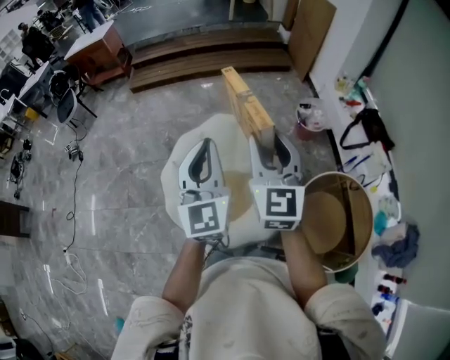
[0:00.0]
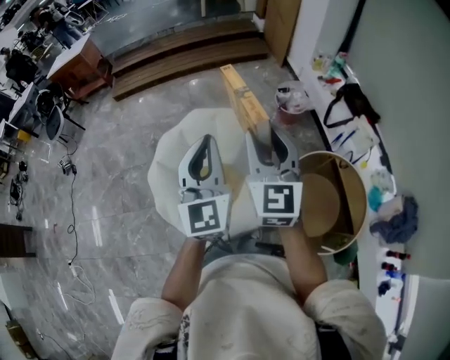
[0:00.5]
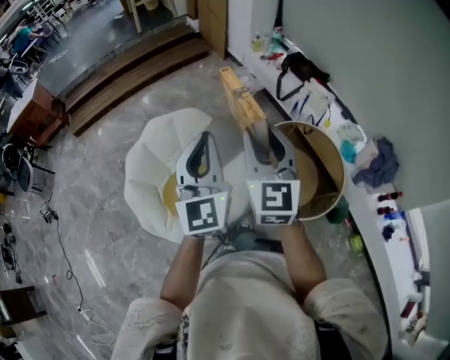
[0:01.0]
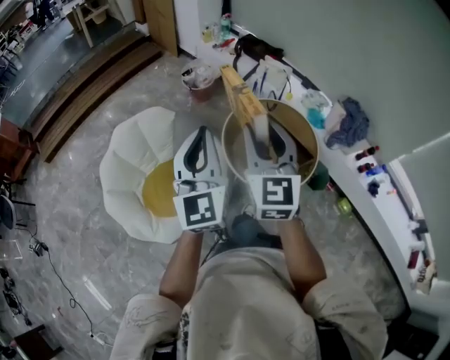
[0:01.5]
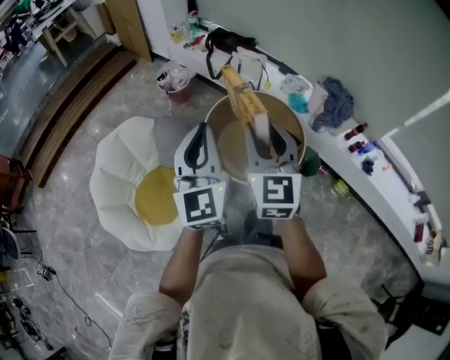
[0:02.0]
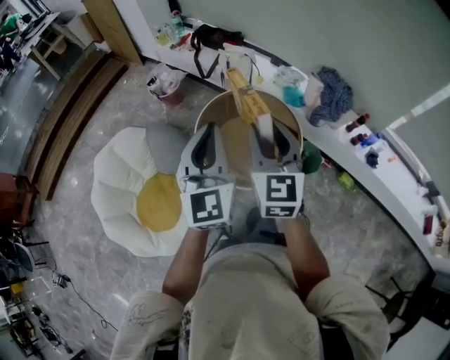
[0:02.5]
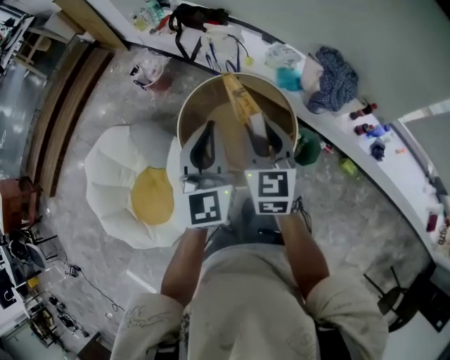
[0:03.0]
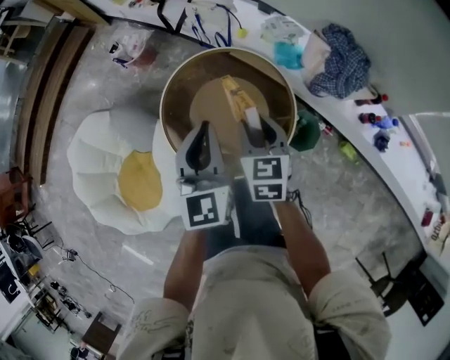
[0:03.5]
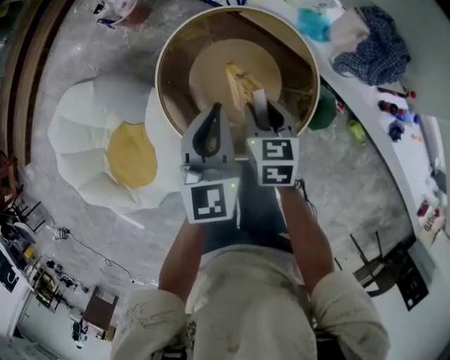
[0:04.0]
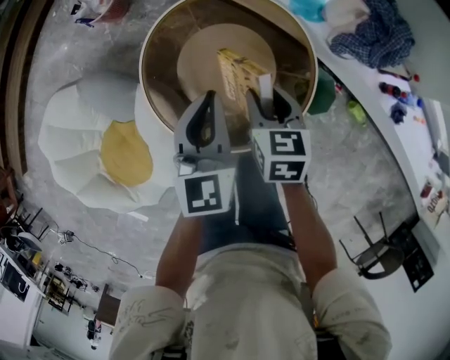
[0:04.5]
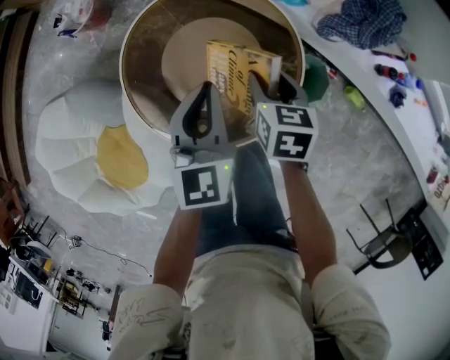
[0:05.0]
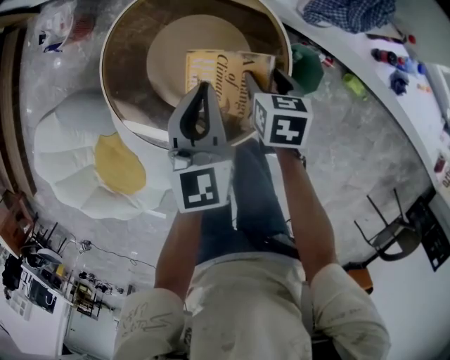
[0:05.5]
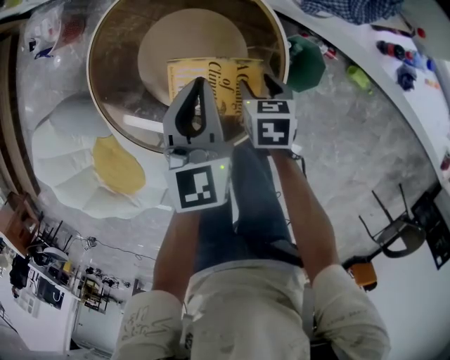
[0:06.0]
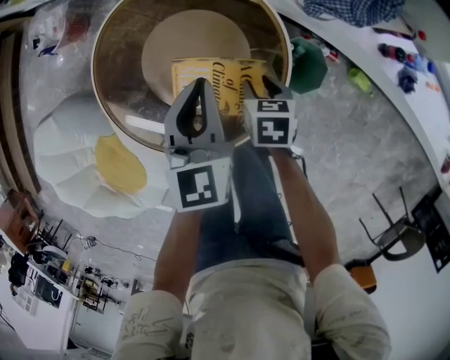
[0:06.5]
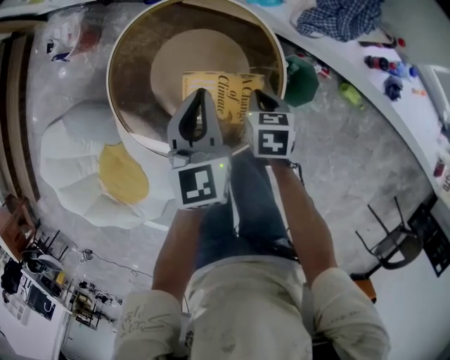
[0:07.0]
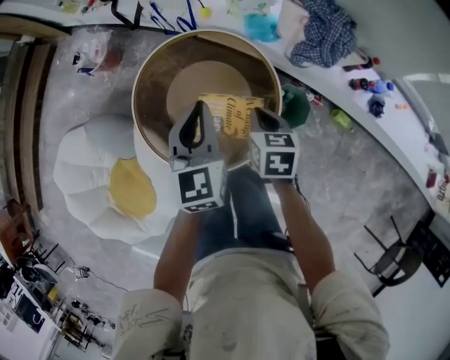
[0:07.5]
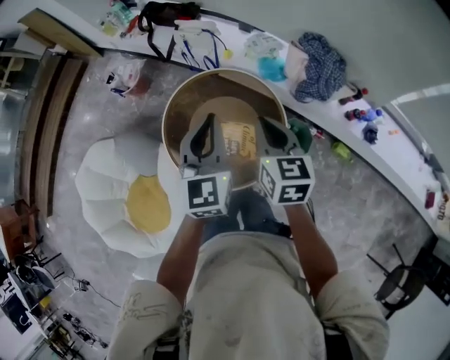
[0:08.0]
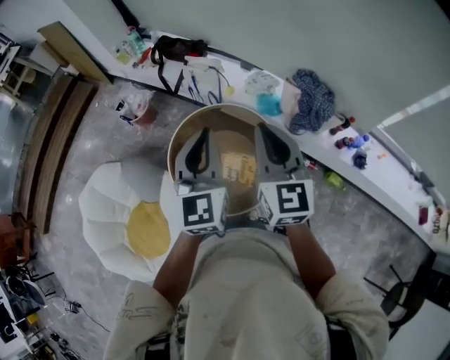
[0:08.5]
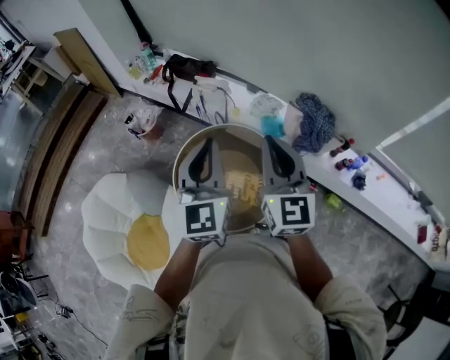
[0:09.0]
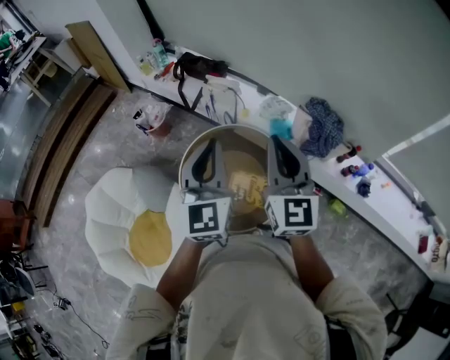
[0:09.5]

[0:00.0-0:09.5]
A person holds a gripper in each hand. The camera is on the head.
0:00.0 to 0:02.0: The right gripper moves approximately 40 cm, and rotates about 50 degrees. The left gripper moves about 35 cm, and rotates some 50 degrees.
0:02.0 to 0:04.0: The two grippers go roughly 40 cm downward, forward and to the right. The right gripper tilts its fingers some 40 degrees downward, while the left gripper turns by approximately 30 degrees.
0:04.0 to 0:05.5: Both grippers travel together to the right and downward, approximately 20 cm. The right gripper changes its angle by approximately 20 degrees.
0:05.5 to 0:07.5: The two grippers go approximately 10 cm upward. The right gripper closes.
0:07.5 to 0:09.5: Both grippers travel together upward, roughly 35 cm. The left gripper turns by about 20 degrees. The right gripper angles its fingers upward, by some 50 degrees.

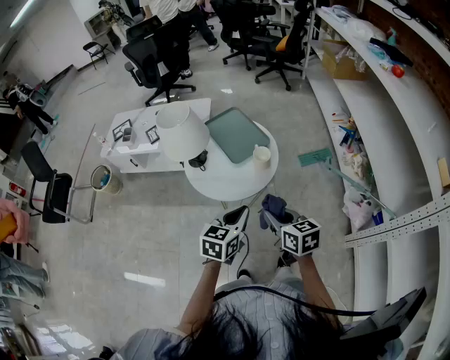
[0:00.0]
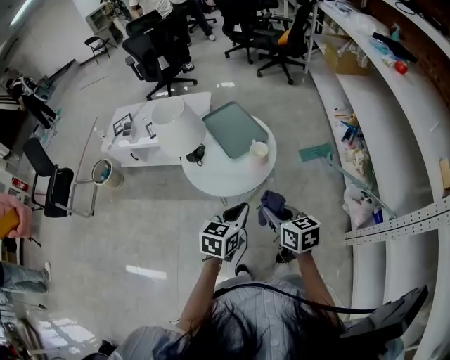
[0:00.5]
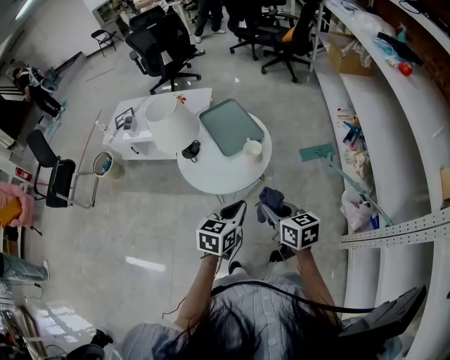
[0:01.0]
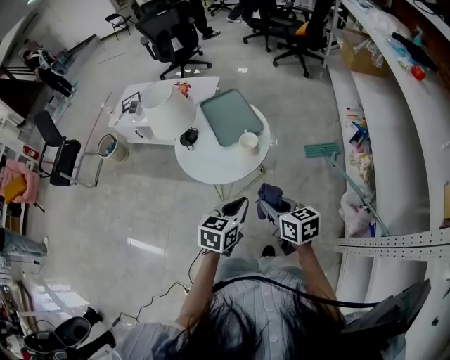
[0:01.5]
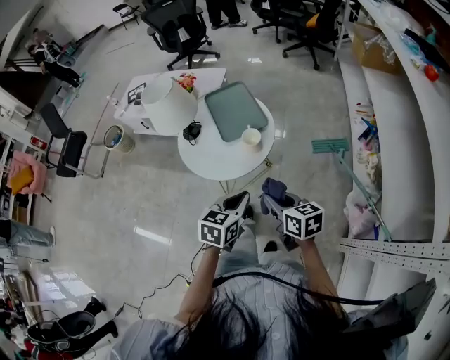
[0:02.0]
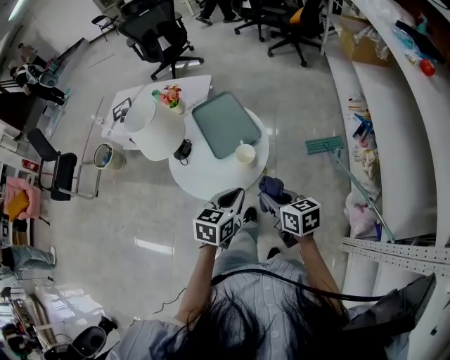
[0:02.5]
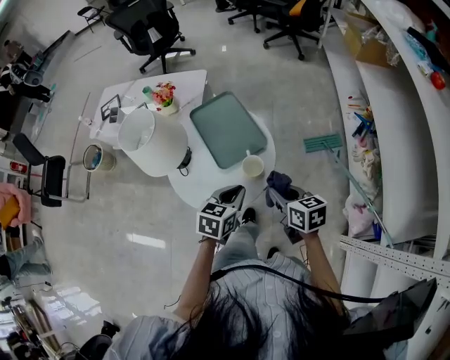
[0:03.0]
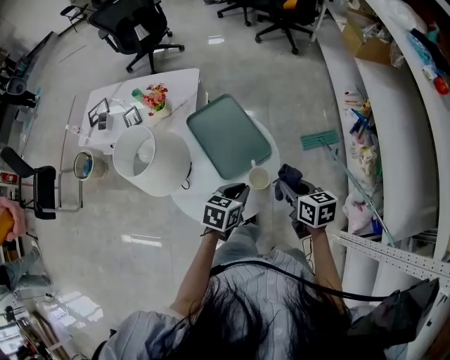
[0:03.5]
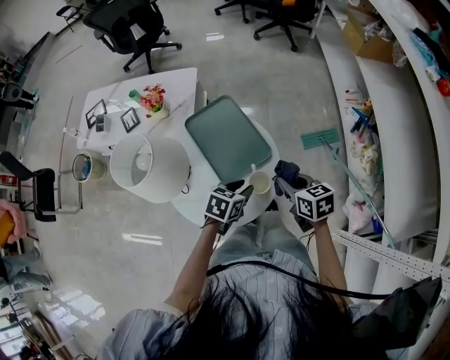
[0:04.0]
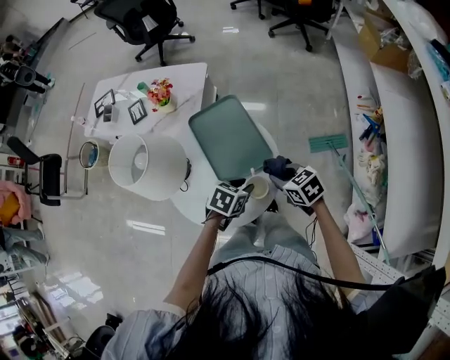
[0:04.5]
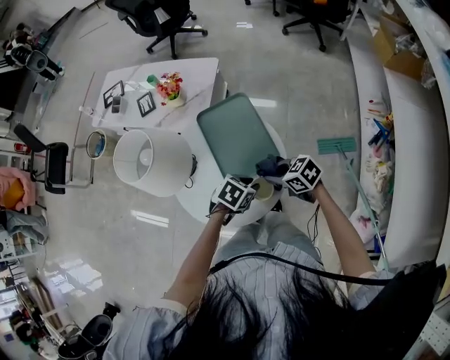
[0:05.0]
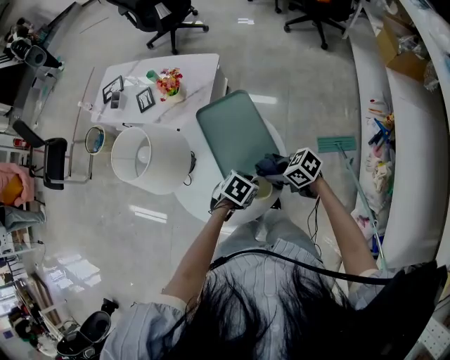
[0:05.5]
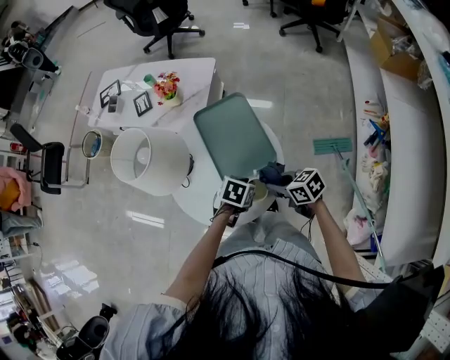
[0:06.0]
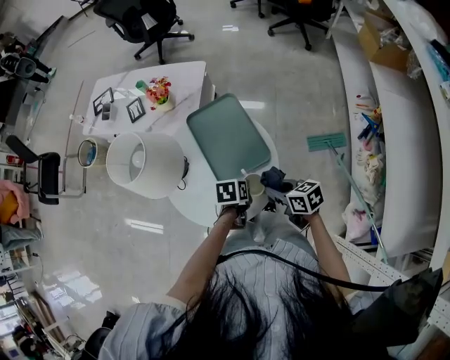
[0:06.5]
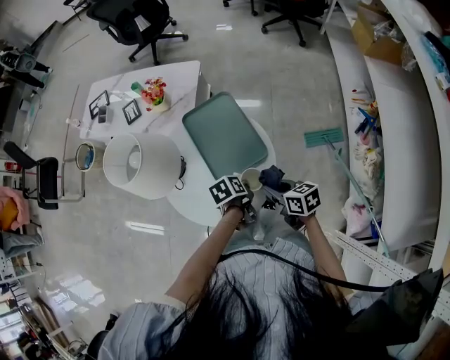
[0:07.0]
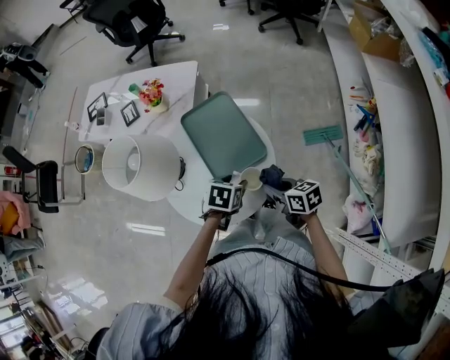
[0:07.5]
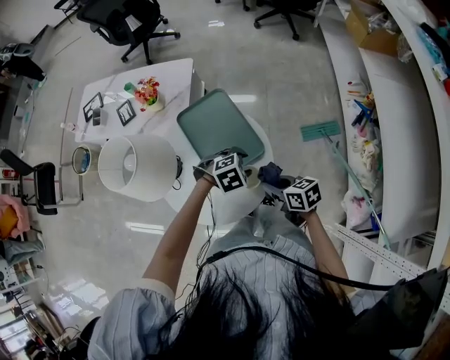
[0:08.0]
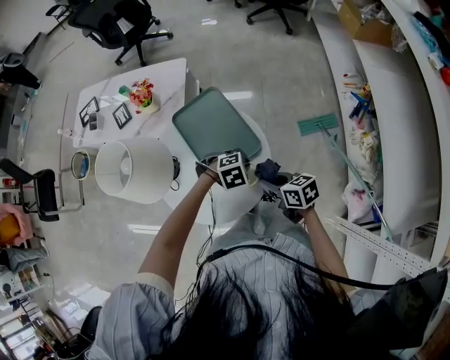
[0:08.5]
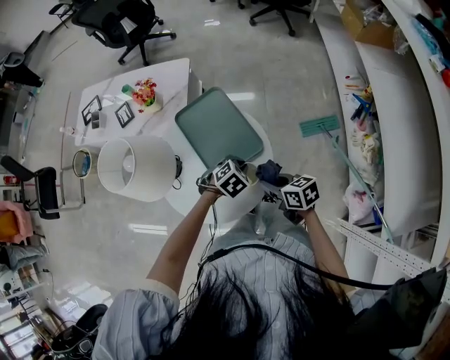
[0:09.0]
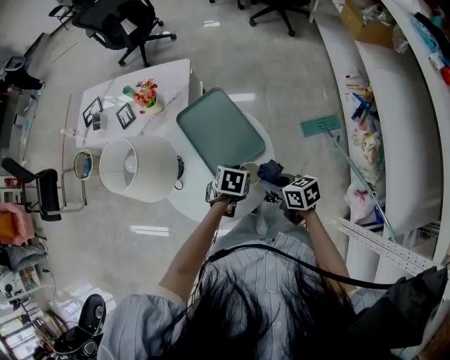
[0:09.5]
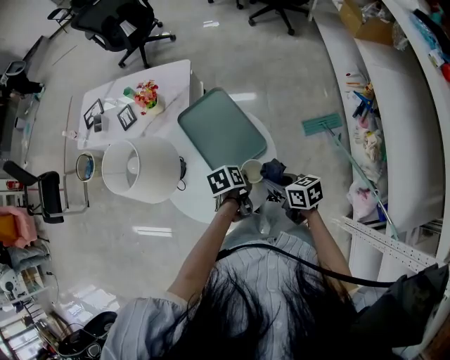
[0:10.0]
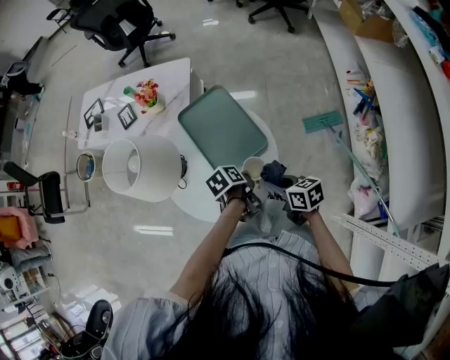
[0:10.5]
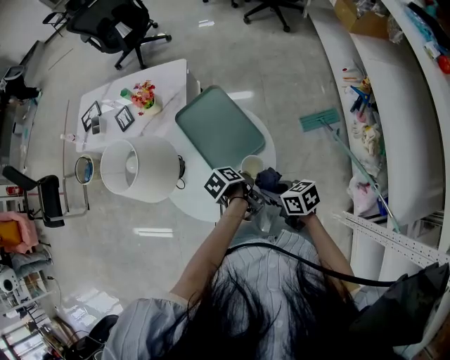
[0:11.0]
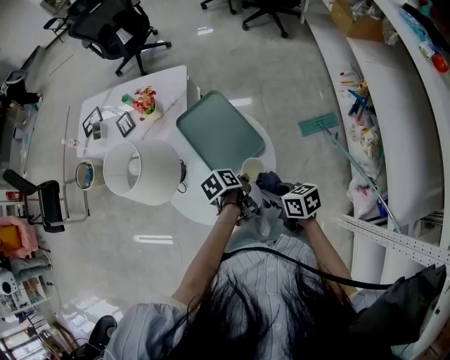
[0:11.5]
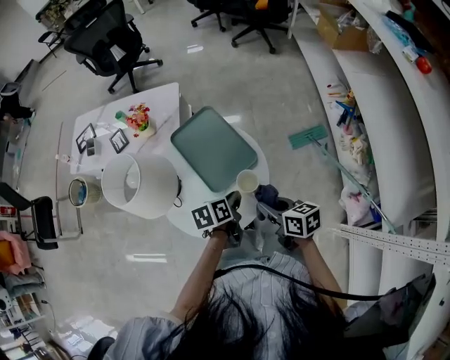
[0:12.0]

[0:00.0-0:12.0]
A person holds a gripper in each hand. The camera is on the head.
0:00.0 to 0:02.0: Both grippers move to the right, roughly 10 cm.
0:02.0 to 0:04.0: The right gripper travels forward by about 25 cm, while the left gripper moves forward and downward, roughly 25 cm, turns by about 30 degrees, and opens up.
0:04.0 to 0:06.0: The two grippers go some 5 cm downward. The right gripper turns by roughly 40 degrees.
0:06.0 to 0:08.0: The left gripper changes place by roughly 5 cm, rolls clockwise, seen from behind, by about 60 degrees, and opens. Meanwhile the right gripper swivels approximately 20 degrees.
0:08.0 to 0:10.0: The left gripper shifts by some 5 cm, rotates around the line of its fingers by roughly 90 degrees, counterclockwise from behind, and closes its fingers.
0:10.0 to 0:12.0: Both grippers move upward, approximately 5 cm.

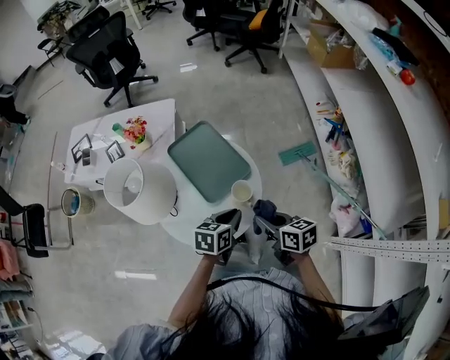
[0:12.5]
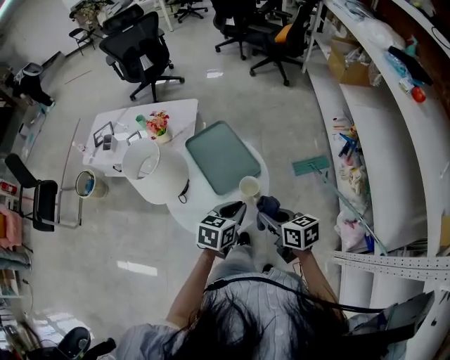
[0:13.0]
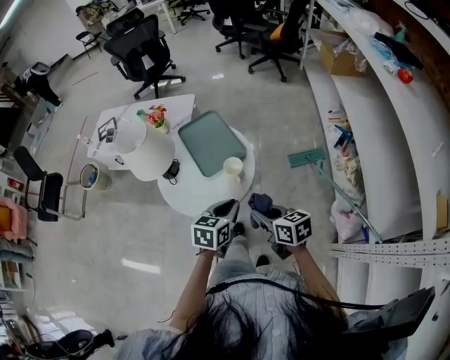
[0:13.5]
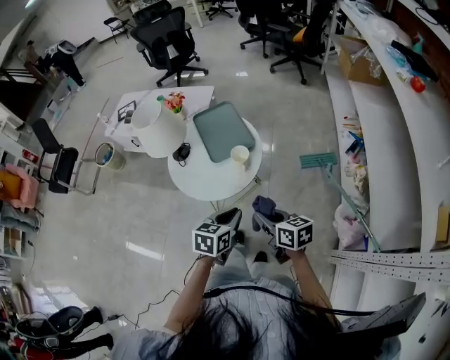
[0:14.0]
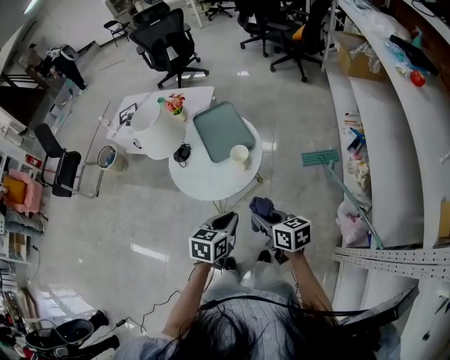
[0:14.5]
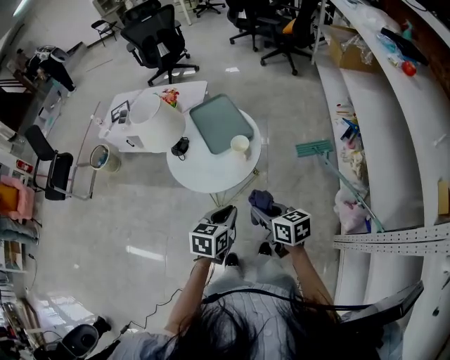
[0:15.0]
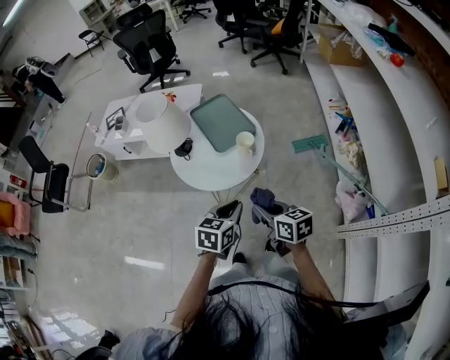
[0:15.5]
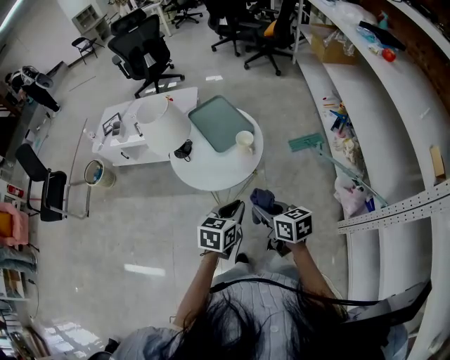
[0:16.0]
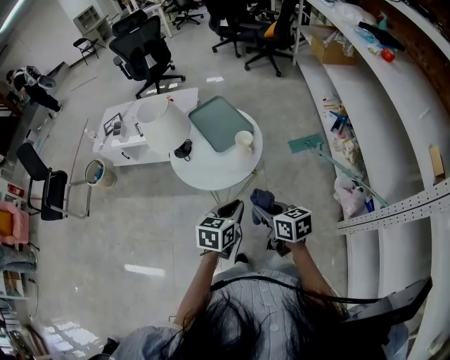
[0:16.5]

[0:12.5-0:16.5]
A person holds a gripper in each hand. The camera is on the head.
0:12.5 to 0:14.5: The grippers both shift backward by some 20 cm. The left gripper rotates roughly 20 degrees.
0:14.5 to 0:16.5: The left gripper is displaced to the left by about 5 cm; the right gripper goes some 10 cm to the left and backward.

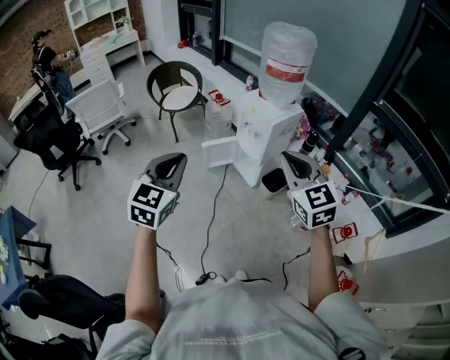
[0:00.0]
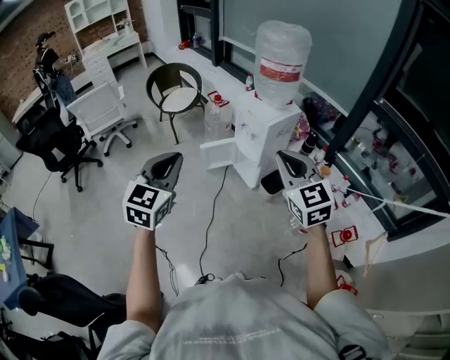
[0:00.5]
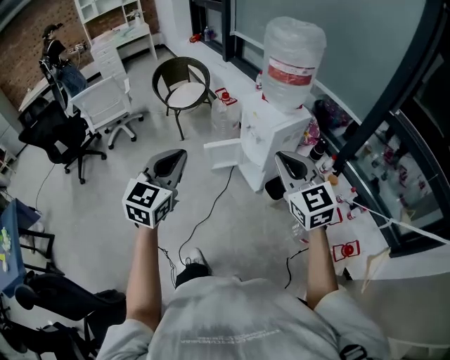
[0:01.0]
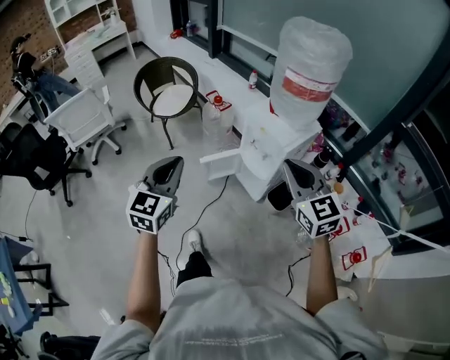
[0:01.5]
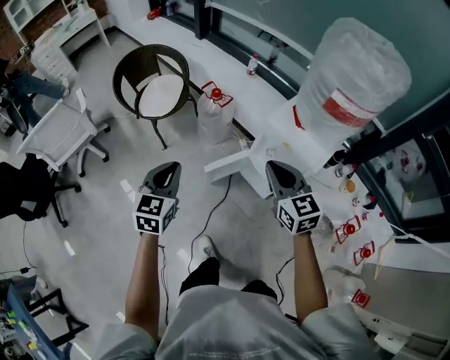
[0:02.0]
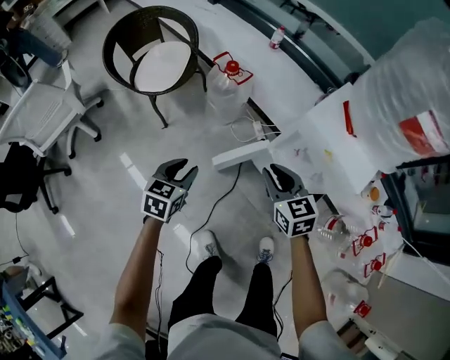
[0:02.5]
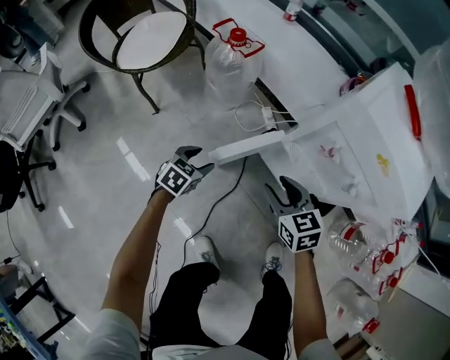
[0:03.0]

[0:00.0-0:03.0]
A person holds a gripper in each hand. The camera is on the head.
0:00.0 to 0:01.5: The grippers both shift forward by about 25 cm.
0:01.5 to 0:03.0: The grippers both shift downward and forward by about 70 cm. The right gripper turns by about 30 degrees, and opens up, while the left gripper tips its fingers downward by roughly 40 degrees, and opens its fingers.
